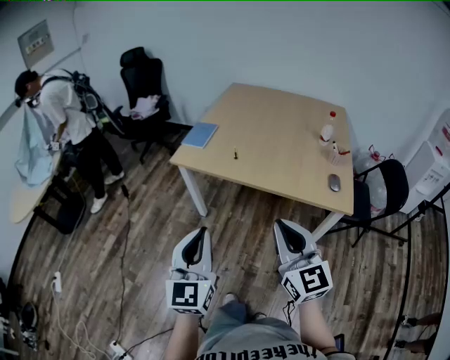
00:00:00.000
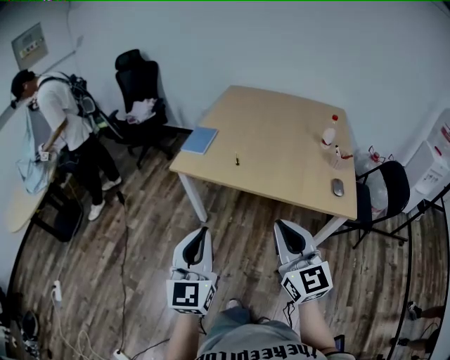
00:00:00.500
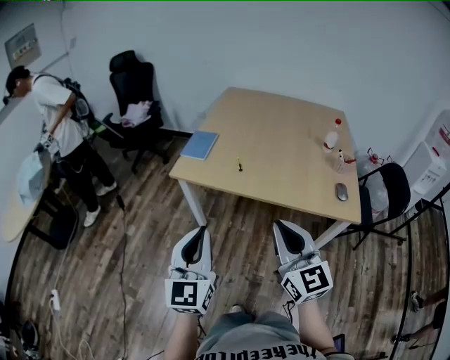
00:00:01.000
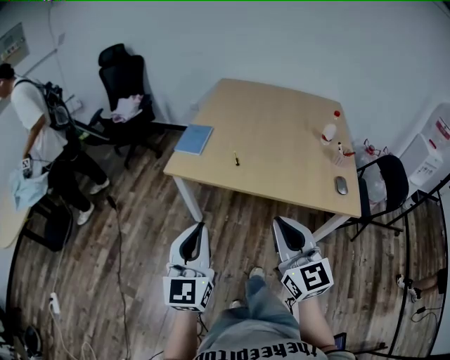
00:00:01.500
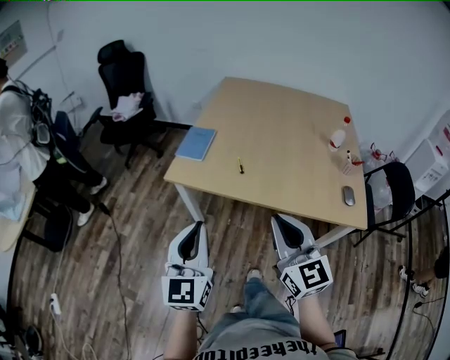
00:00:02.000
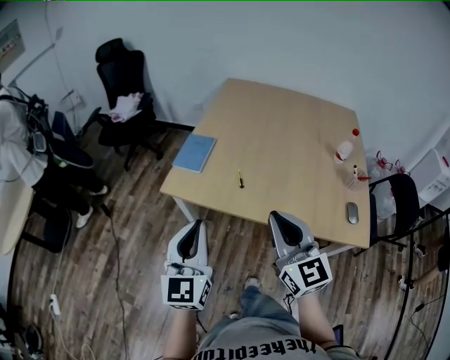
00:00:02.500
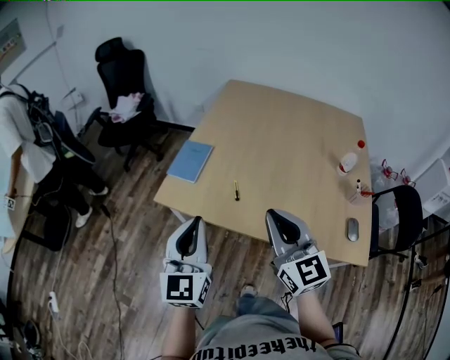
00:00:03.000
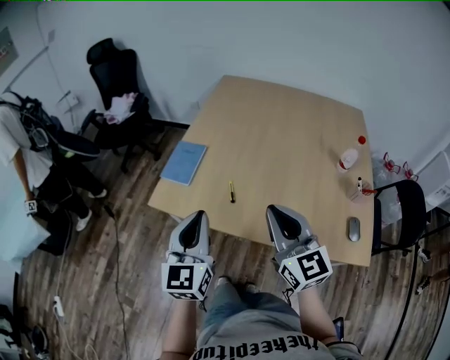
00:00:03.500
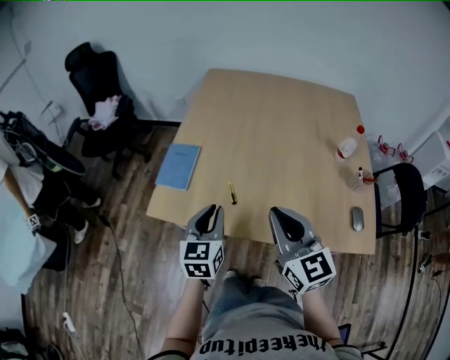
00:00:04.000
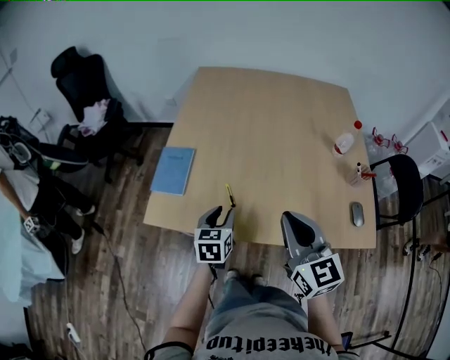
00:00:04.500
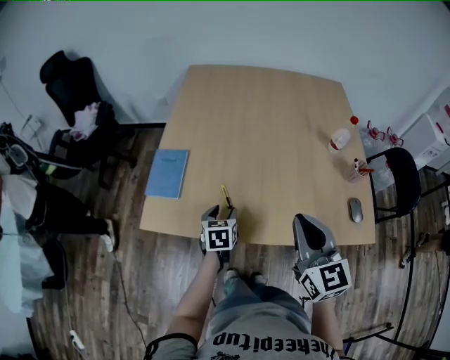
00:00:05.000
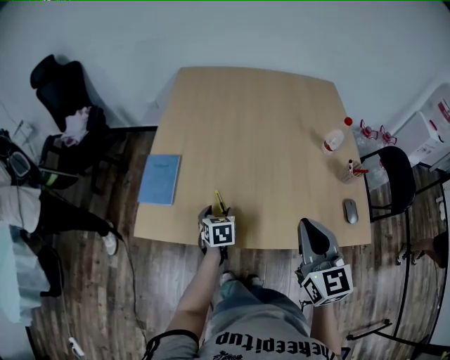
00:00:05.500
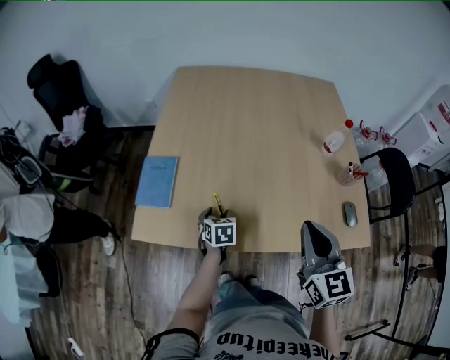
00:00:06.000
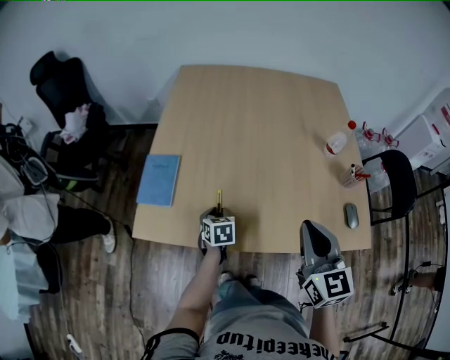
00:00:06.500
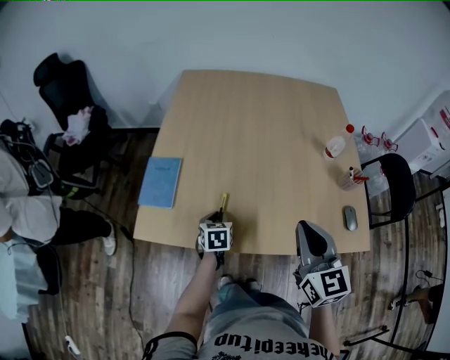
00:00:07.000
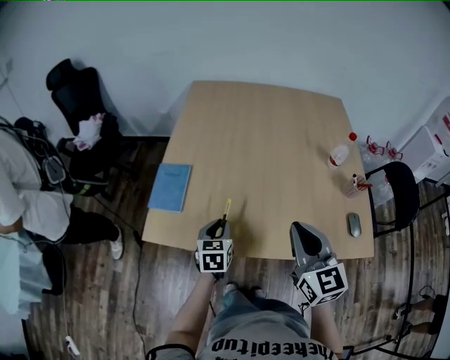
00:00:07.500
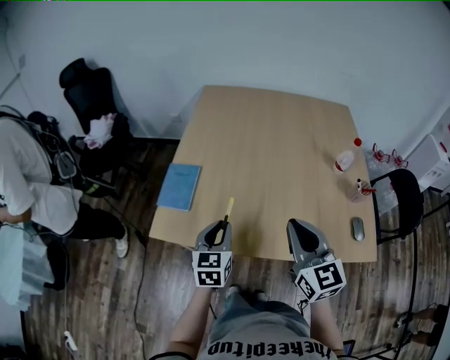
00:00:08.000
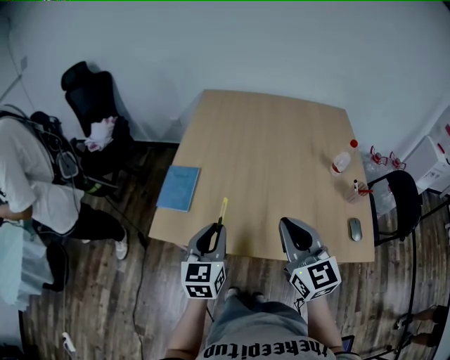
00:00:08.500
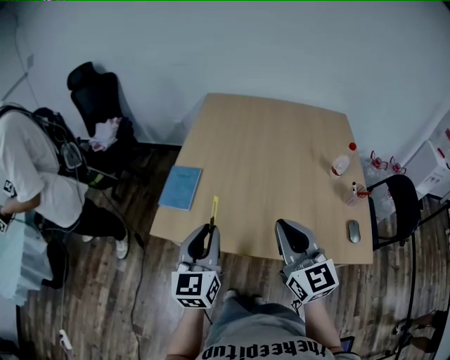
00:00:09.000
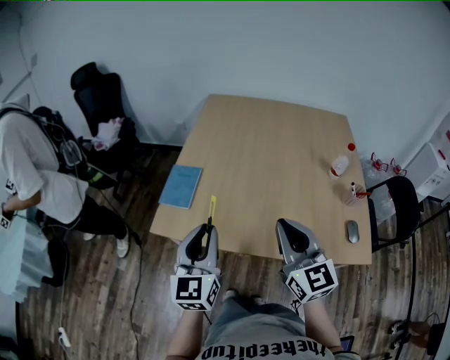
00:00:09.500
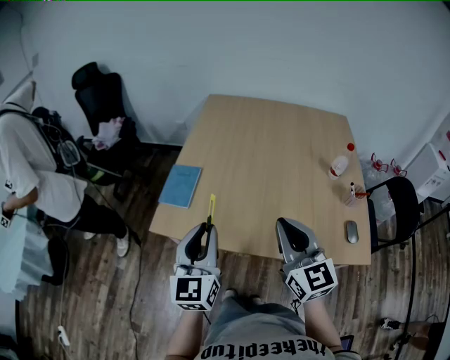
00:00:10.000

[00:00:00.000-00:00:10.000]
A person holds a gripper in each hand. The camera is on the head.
00:00:00.000 to 00:00:02.000: Both grippers move forward, approximately 15 cm.
00:00:02.000 to 00:00:04.000: The right gripper is displaced forward by approximately 20 cm. Meanwhile the left gripper shifts some 30 cm forward, to the right and downward, and rotates about 20 degrees.
00:00:04.000 to 00:00:06.000: The left gripper travels downward and forward by roughly 20 cm, angles its fingers downward, by roughly 30 degrees, and opens its fingers; the right gripper shifts about 10 cm to the right, and changes its angle by approximately 20 degrees.
00:00:06.000 to 00:00:08.000: The right gripper travels to the left by roughly 5 cm. The left gripper moves upward and backward, about 20 cm, changes its angle by about 30 degrees, and closes up.
00:00:08.000 to 00:00:10.000: The left gripper travels upward and backward by roughly 15 cm, and swivels some 20 degrees.

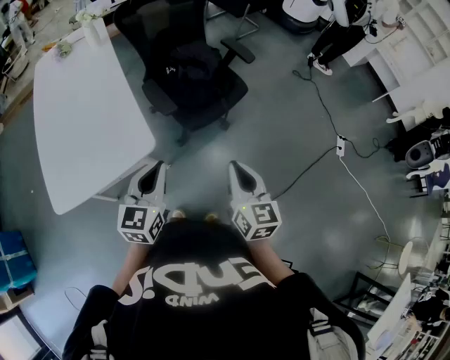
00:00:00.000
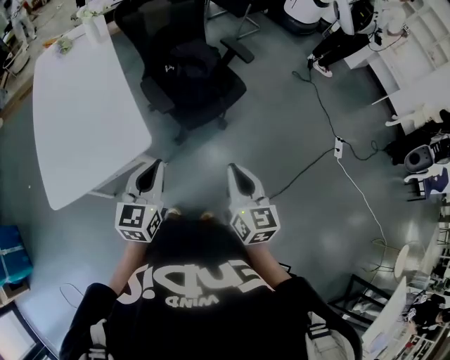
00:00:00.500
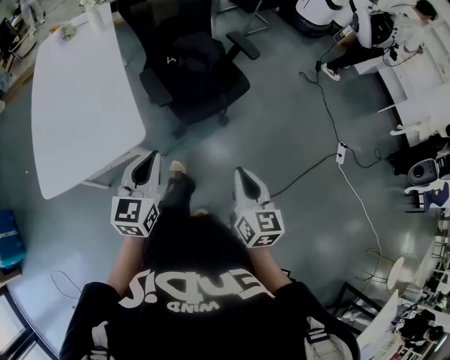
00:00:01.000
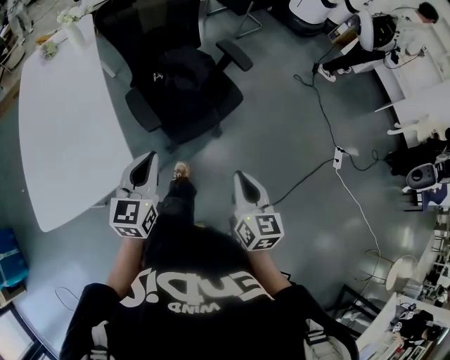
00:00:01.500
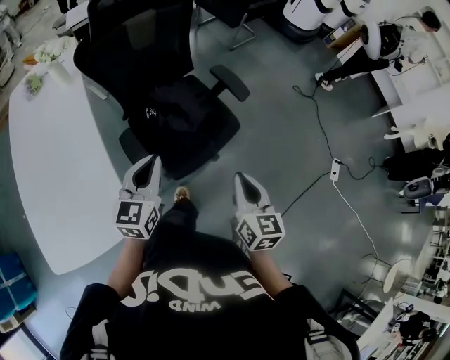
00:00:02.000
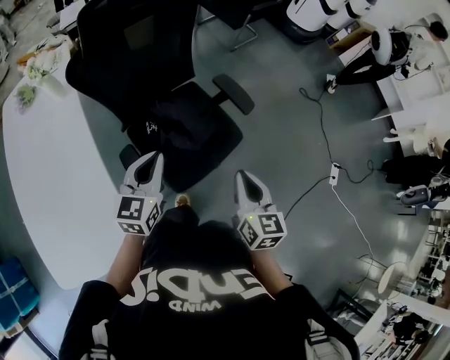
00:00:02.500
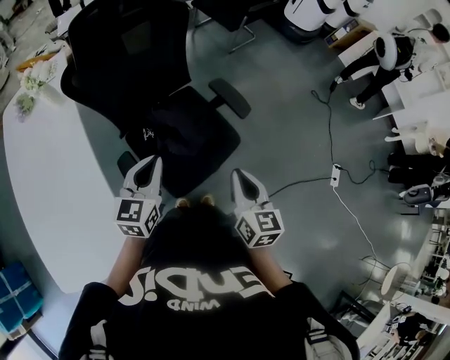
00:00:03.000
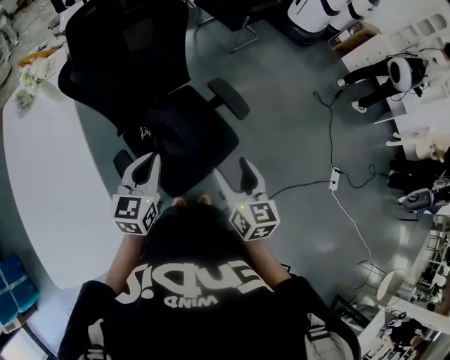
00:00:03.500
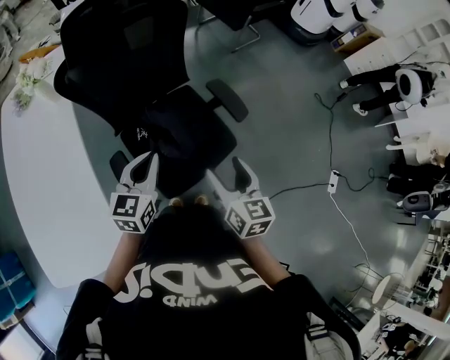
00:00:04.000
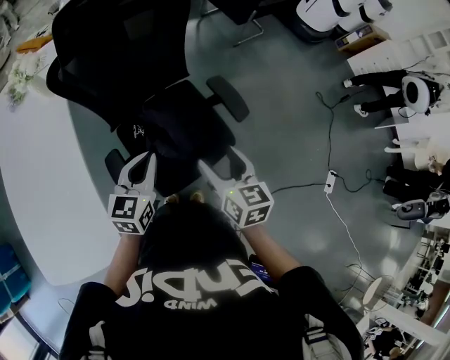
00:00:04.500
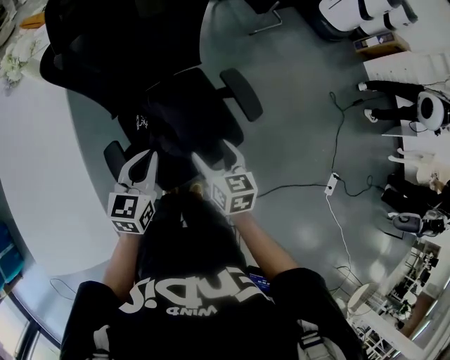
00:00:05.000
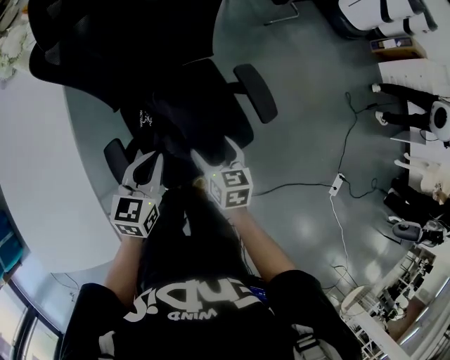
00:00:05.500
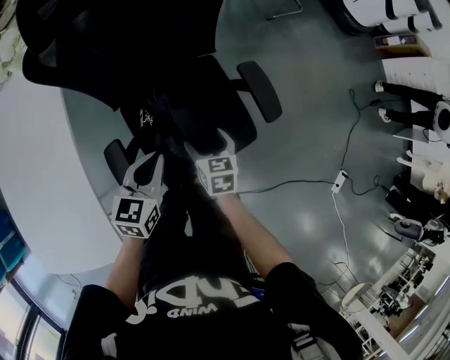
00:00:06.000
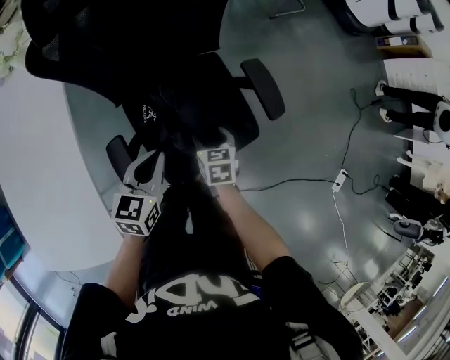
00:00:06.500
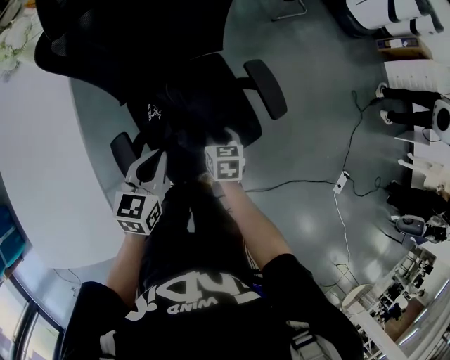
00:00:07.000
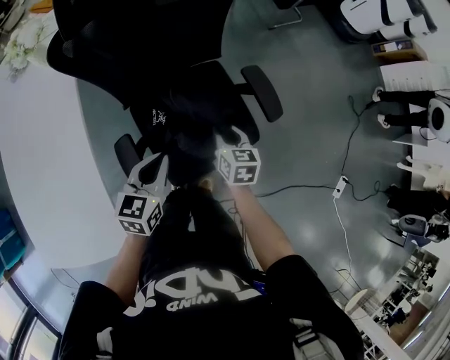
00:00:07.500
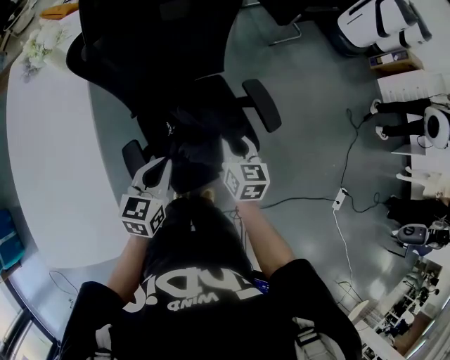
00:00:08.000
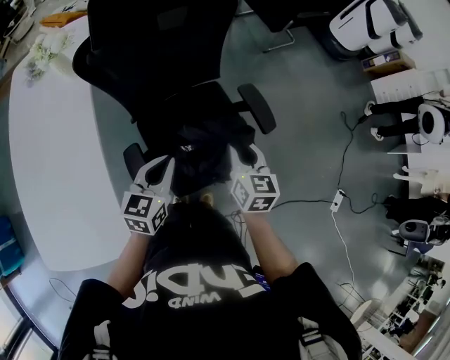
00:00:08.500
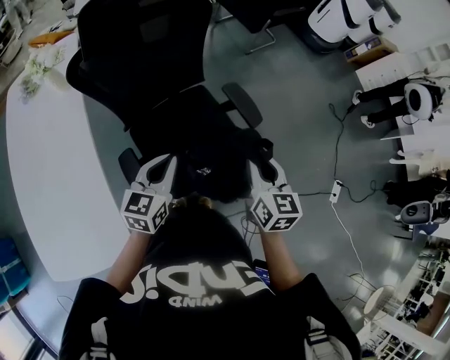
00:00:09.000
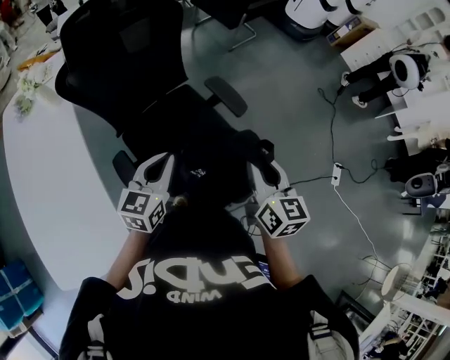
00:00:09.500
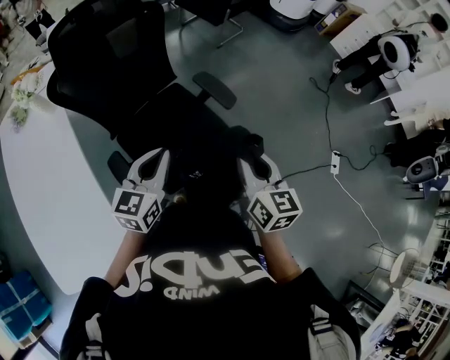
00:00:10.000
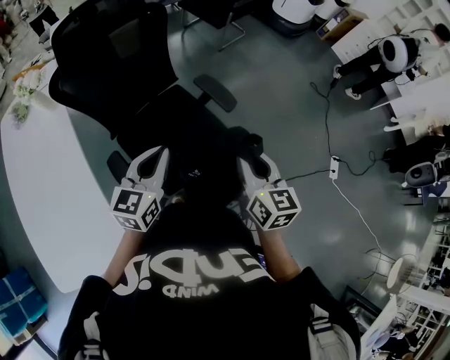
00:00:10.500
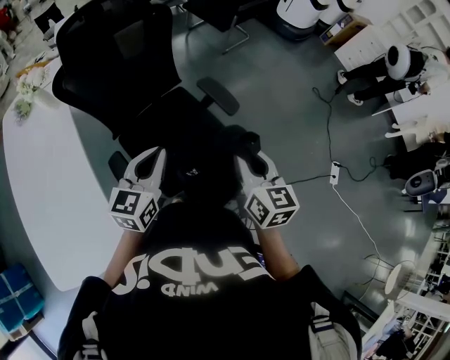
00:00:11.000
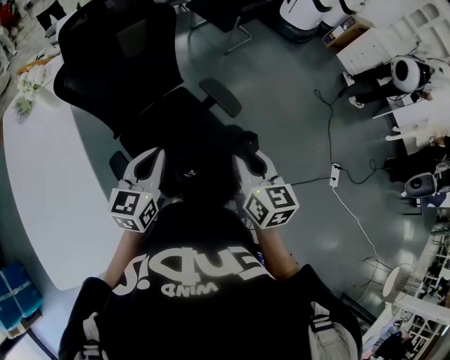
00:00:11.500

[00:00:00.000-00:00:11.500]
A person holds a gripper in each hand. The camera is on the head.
00:00:00.000 to 00:00:02.000: The grippers both shift forward by some 35 cm.
00:00:02.000 to 00:00:04.000: The grippers both shift forward by roughly 20 cm. The right gripper opens its fingers.
00:00:04.000 to 00:00:06.000: The left gripper travels downward and forward by approximately 20 cm, while the right gripper shifts about 30 cm downward and forward, and turns by some 30 degrees.
00:00:06.000 to 00:00:07.500: The left gripper changes place by about 5 cm. Meanwhile the right gripper shifts by approximately 5 cm, and closes its fingers.
00:00:07.500 to 00:00:09.500: The right gripper is displaced upward, backward and to the right by approximately 35 cm, and changes its angle by about 30 degrees, while the left gripper shifts about 15 cm upward, to the right and backward.

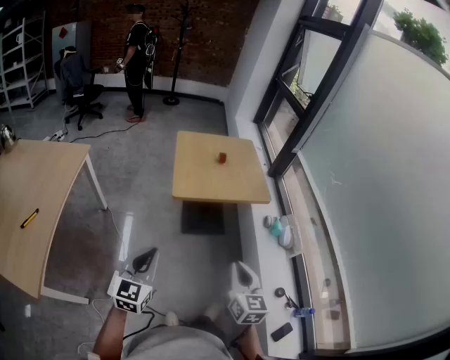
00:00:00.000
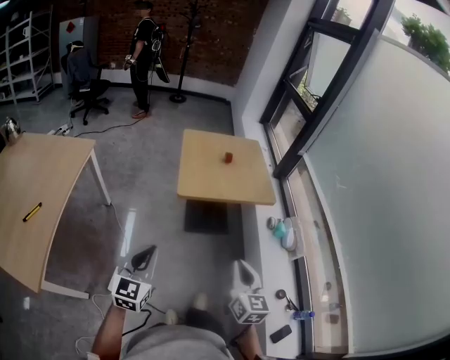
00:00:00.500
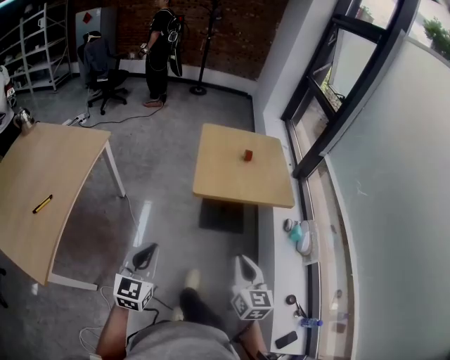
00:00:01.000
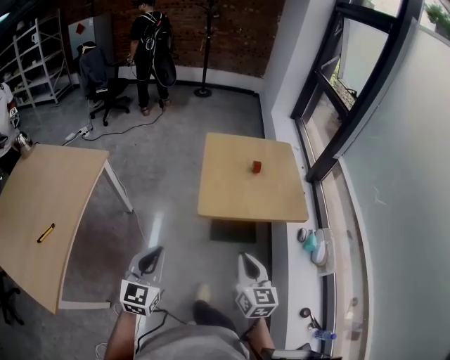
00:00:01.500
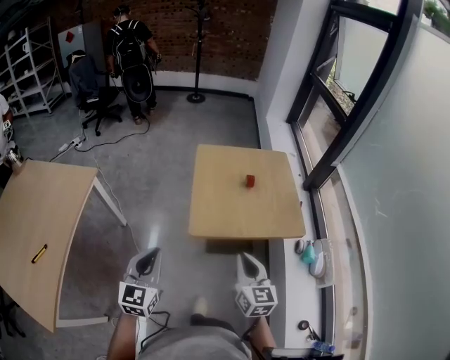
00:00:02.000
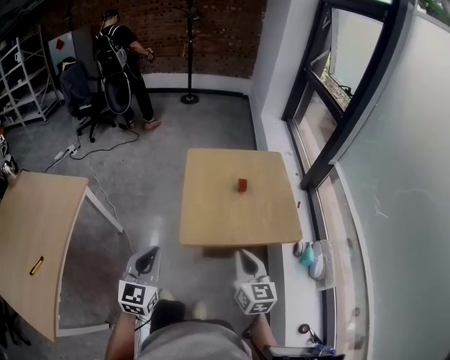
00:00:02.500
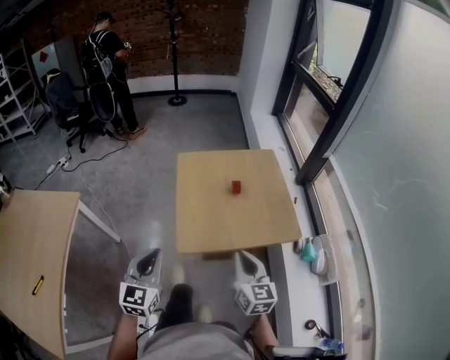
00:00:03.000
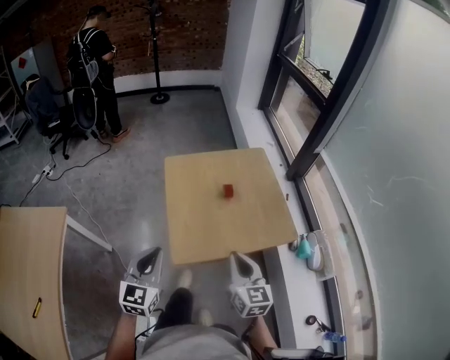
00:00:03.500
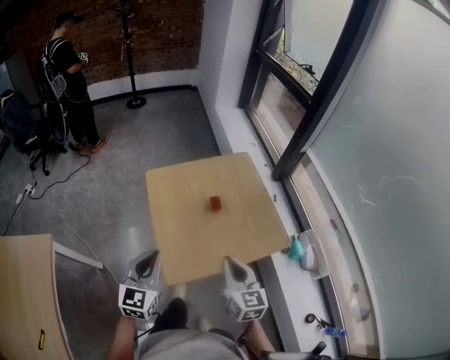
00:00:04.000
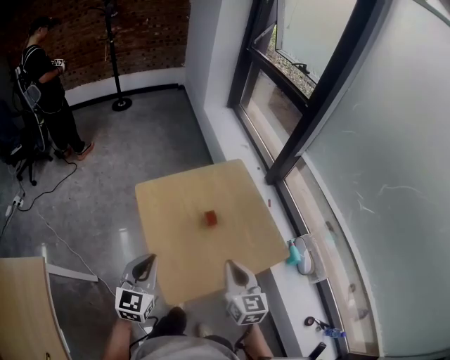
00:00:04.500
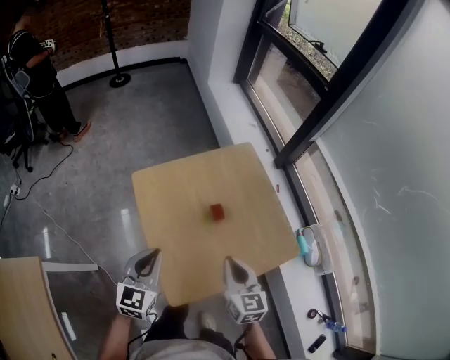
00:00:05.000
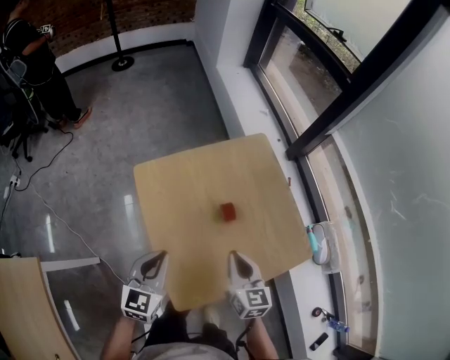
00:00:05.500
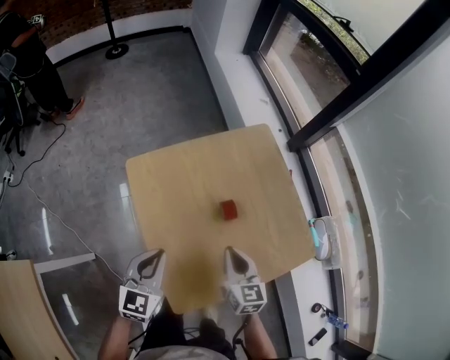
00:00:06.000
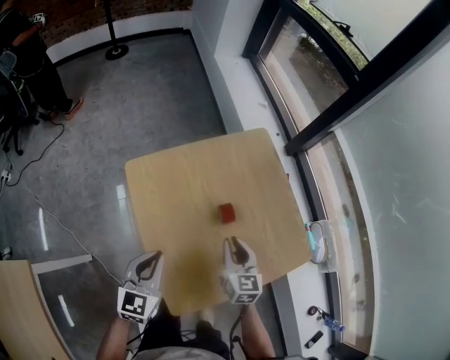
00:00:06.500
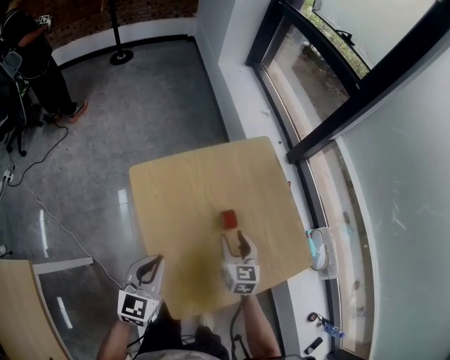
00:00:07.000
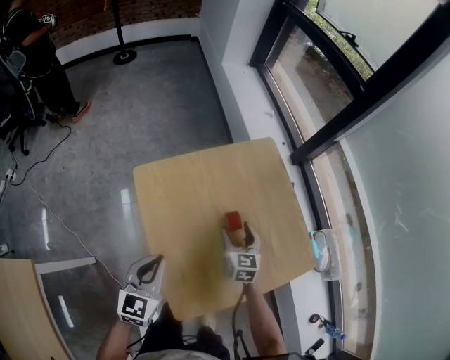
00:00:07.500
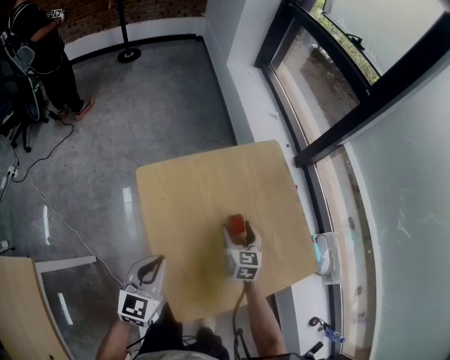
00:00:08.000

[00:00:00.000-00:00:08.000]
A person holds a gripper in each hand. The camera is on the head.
00:00:00.000 to 00:00:02.000: The two grippers go some 25 cm forward.
00:00:02.000 to 00:00:04.000: The grippers both shift forward by some 20 cm.
00:00:04.000 to 00:00:06.000: The grippers both shift forward and downward by about 25 cm.
00:00:06.000 to 00:00:08.000: The right gripper is displaced forward and downward by approximately 15 cm, and opens up.
